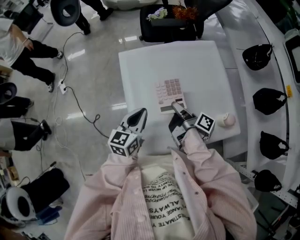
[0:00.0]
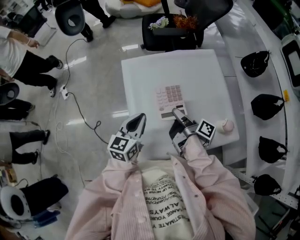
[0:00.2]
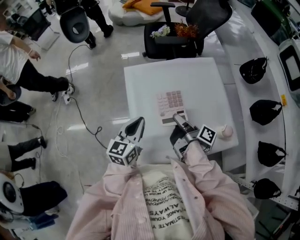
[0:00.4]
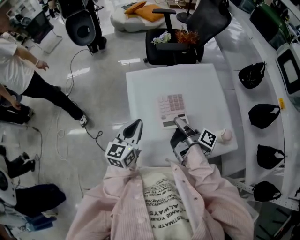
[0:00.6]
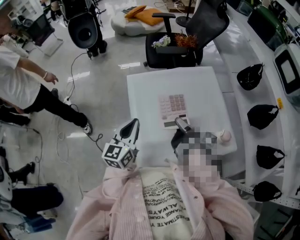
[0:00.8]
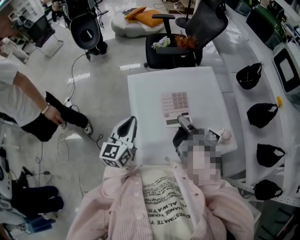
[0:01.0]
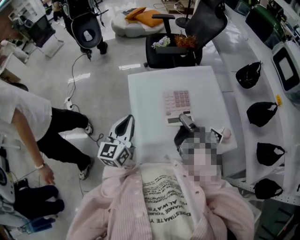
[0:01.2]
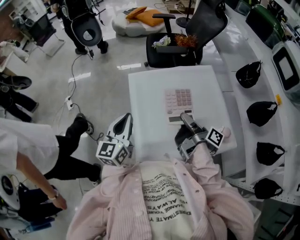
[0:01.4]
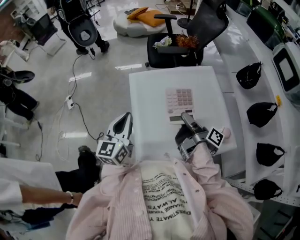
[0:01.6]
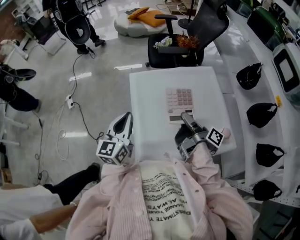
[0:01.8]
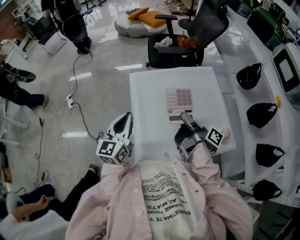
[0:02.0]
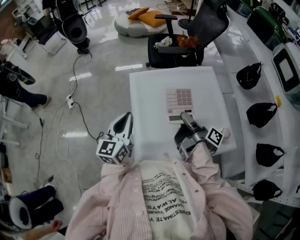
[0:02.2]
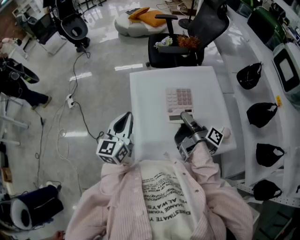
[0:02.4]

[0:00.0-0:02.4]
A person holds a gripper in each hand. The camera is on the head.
0:00.0 to 0:01.2: The right gripper goes roughly 10 cm upward, while the left gripper travels upward and to the left by roughly 15 cm.
0:01.2 to 0:02.4: Both grippers stay about where they are.

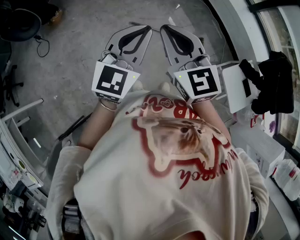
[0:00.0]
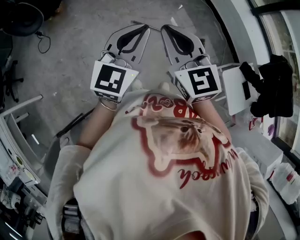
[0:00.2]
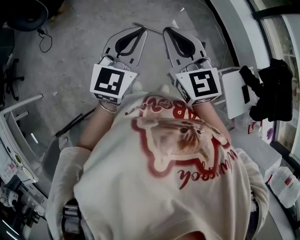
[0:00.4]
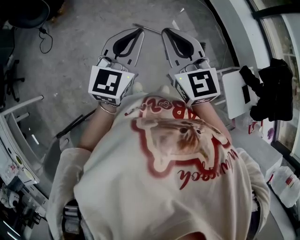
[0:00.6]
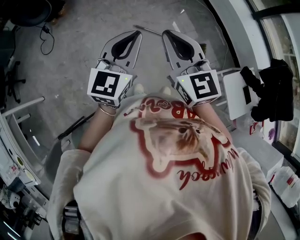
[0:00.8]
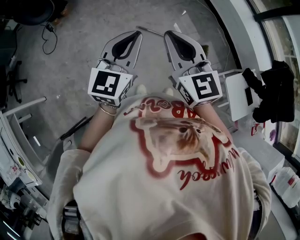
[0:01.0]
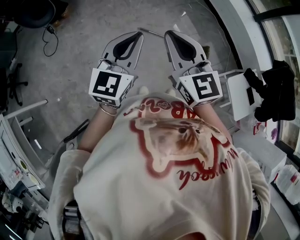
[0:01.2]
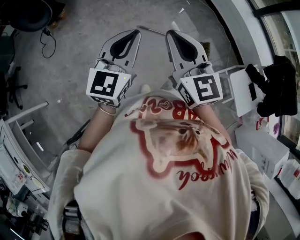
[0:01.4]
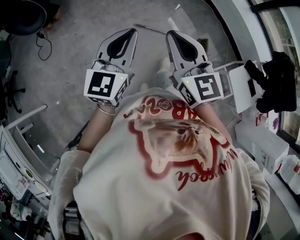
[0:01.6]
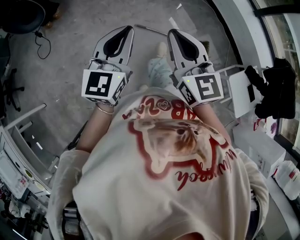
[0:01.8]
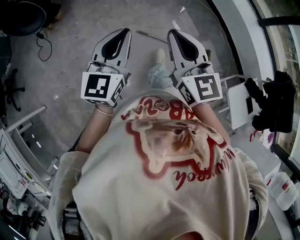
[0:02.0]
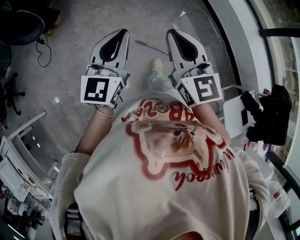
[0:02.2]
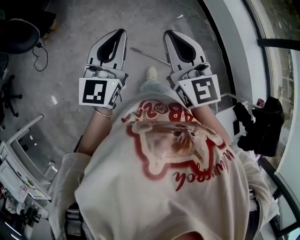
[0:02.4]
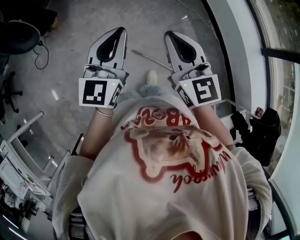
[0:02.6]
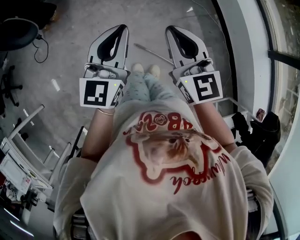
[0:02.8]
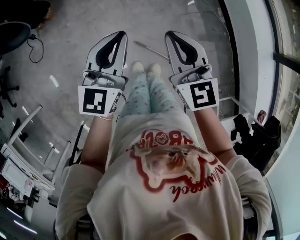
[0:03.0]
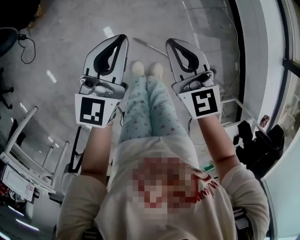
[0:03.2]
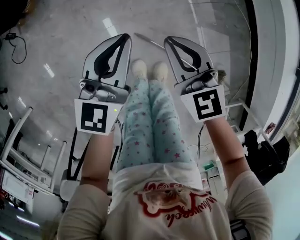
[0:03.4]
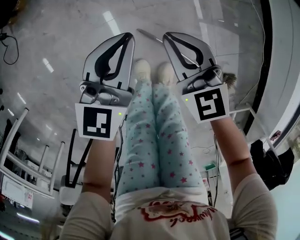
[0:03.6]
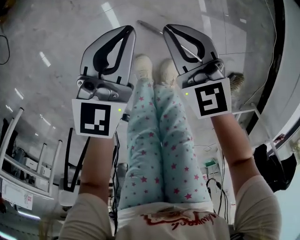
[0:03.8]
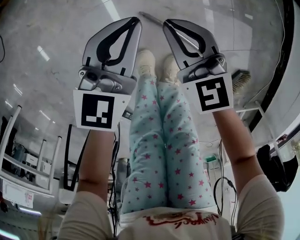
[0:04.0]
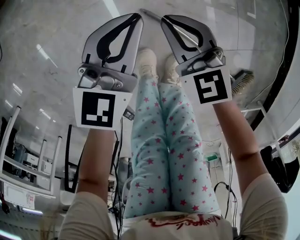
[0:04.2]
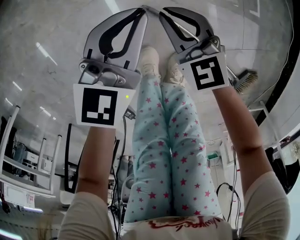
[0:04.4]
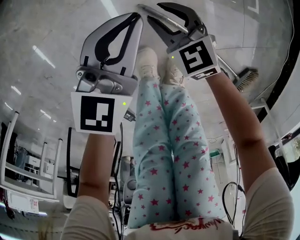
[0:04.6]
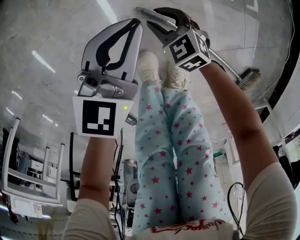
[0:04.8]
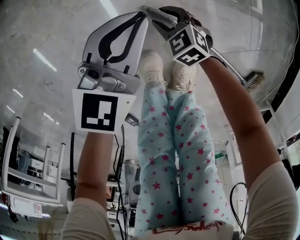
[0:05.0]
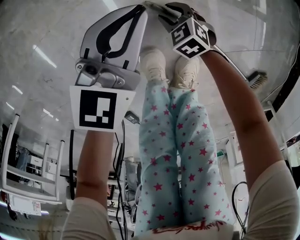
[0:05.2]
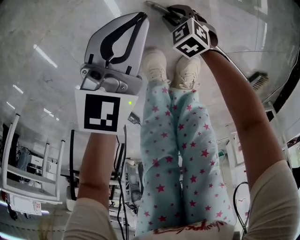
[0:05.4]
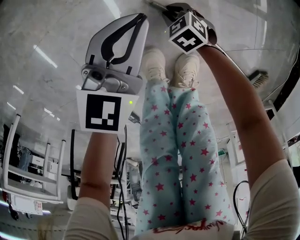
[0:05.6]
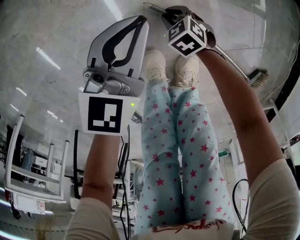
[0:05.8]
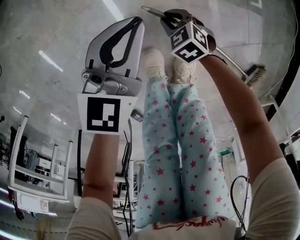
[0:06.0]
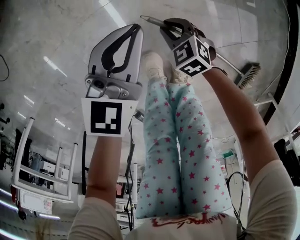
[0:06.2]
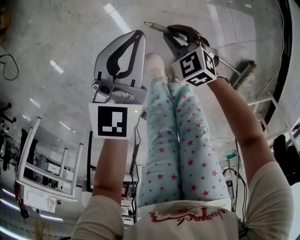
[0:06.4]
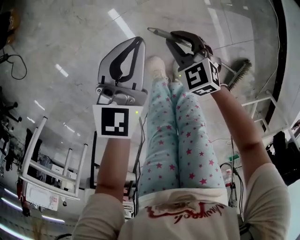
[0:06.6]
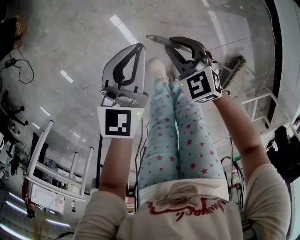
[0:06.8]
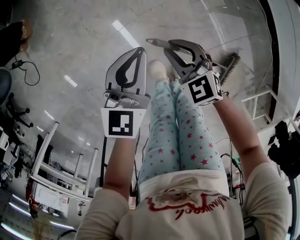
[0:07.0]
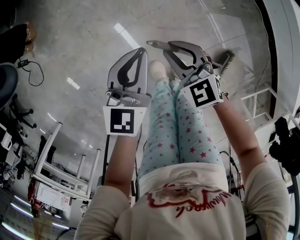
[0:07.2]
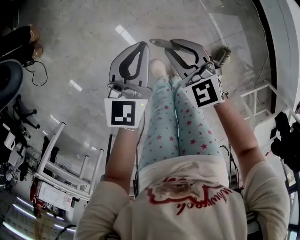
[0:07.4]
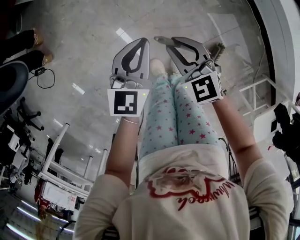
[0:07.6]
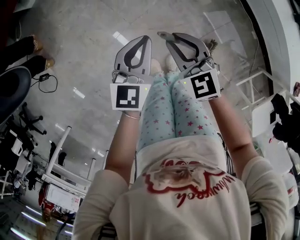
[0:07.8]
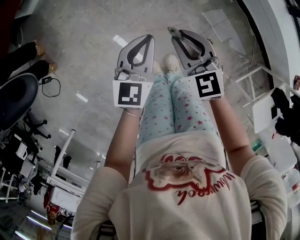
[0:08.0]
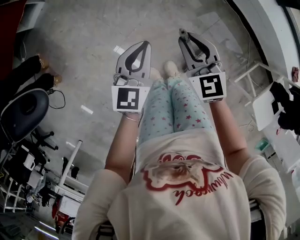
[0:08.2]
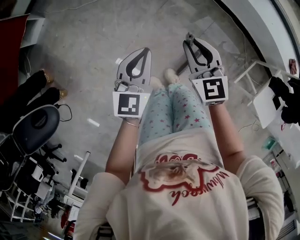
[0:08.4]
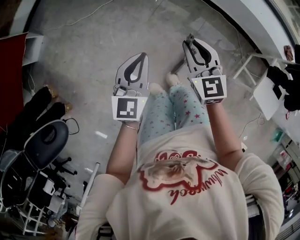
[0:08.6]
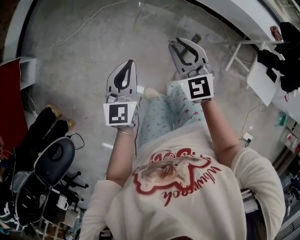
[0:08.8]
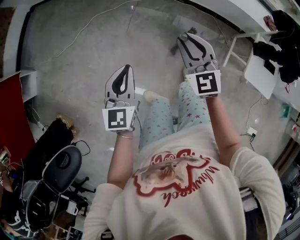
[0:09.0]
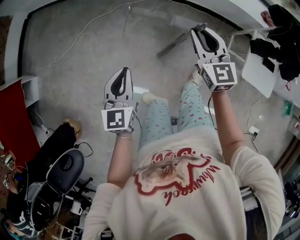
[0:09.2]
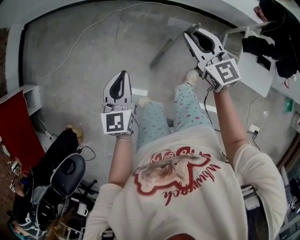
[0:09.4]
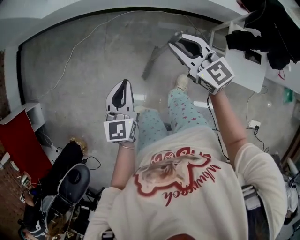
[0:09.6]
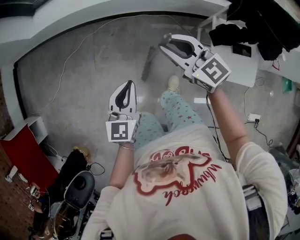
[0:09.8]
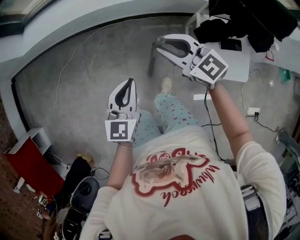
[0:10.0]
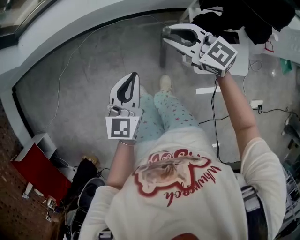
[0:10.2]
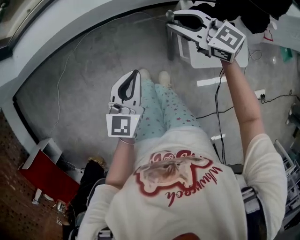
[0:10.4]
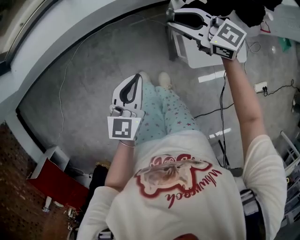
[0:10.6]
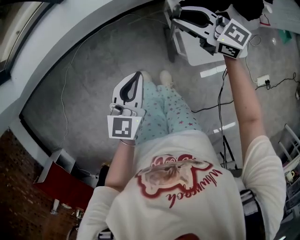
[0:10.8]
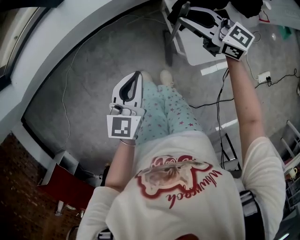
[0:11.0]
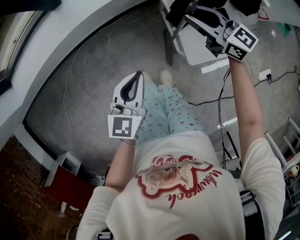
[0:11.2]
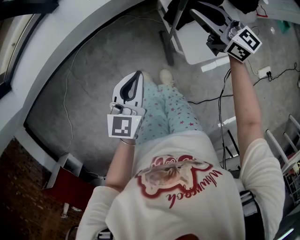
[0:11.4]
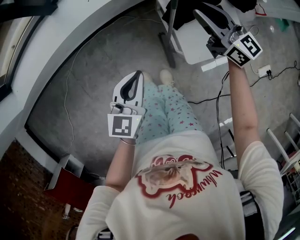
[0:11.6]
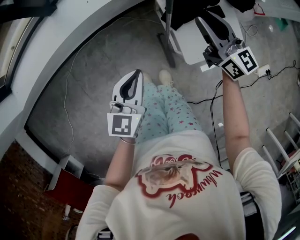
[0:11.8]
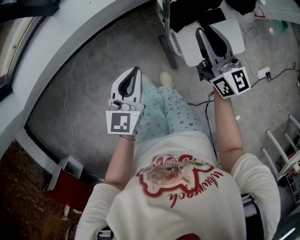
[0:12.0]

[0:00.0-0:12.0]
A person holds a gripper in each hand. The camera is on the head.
0:00.0 to 0:01.6: The right gripper heads to the left, covering some 5 cm, while the left gripper goes approximately 10 cm to the left.
0:01.6 to 0:03.0: The pair of grippers is taken forward, about 40 cm.
0:03.0 to 0:04.4: The grippers both shift downward by some 60 cm. The right gripper changes its angle by some 30 degrees.
0:04.4 to 0:06.0: The right gripper is displaced downward by some 15 cm, and swivels some 30 degrees.
0:06.0 to 0:07.6: The left gripper goes about 30 cm upward. Meanwhile the right gripper goes approximately 50 cm upward, and tips its fingers upward by about 30 degrees.
0:07.6 to 0:09.0: The right gripper ends up about 35 cm from where it was, and rotates about 50 degrees. Meanwhile the left gripper changes place by approximately 20 cm, and rotates about 30 degrees.
0:09.0 to 0:10.4: The two grippers travel together, to the right, roughly 50 cm. The left gripper changes its angle by roughly 40 degrees. Meanwhile the right gripper swivels roughly 30 degrees.
0:10.4 to 0:12.0: The right gripper shifts by approximately 15 cm, and turns by roughly 50 degrees; the left gripper moves about 10 cm.

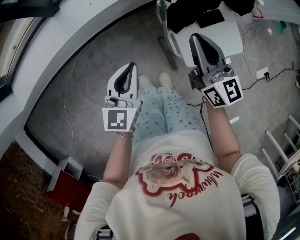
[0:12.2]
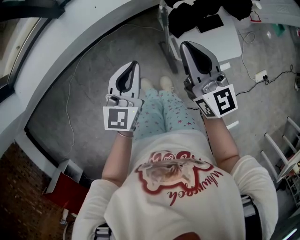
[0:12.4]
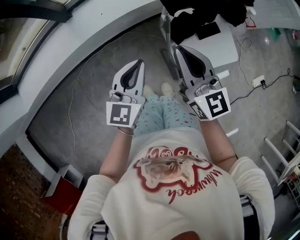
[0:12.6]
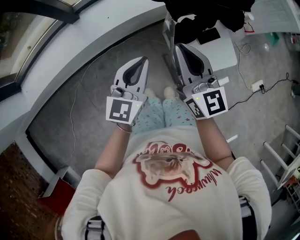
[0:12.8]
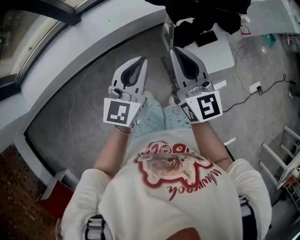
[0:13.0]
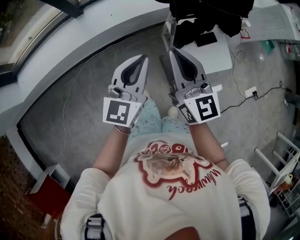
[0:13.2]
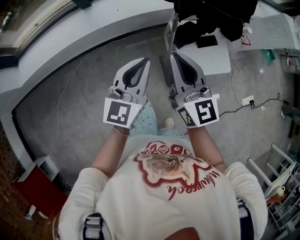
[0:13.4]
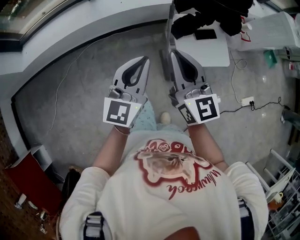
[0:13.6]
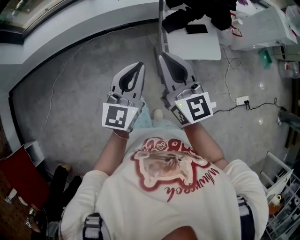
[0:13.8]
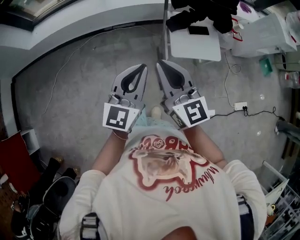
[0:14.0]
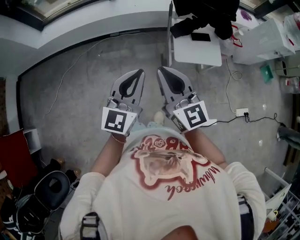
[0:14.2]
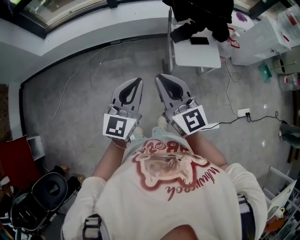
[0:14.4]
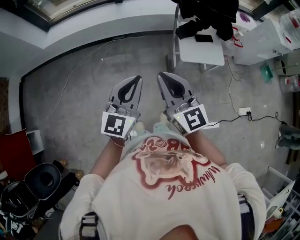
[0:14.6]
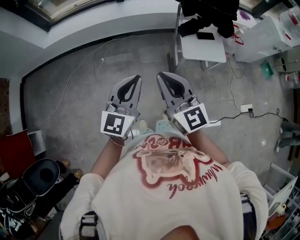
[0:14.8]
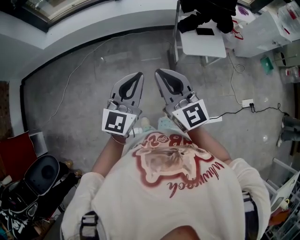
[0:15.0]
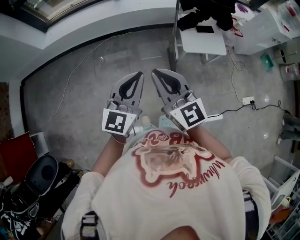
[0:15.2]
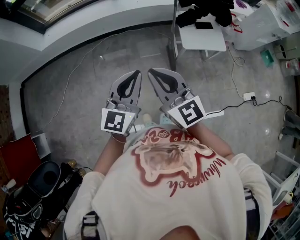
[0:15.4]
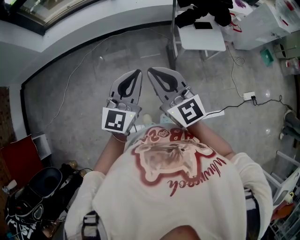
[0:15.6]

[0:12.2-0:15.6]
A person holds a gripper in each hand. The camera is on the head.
0:12.2 to 0:13.8: The grippers both shift backward and upward by some 30 cm.
0:13.8 to 0:15.6: The grippers both shift backward and to the left by some 25 cm.

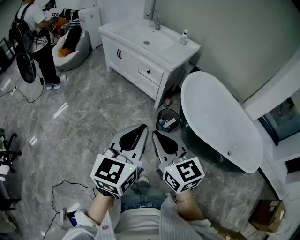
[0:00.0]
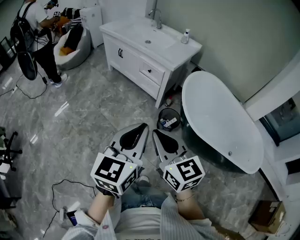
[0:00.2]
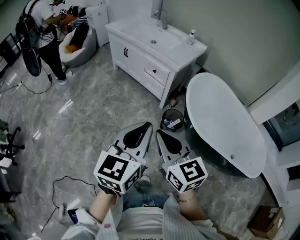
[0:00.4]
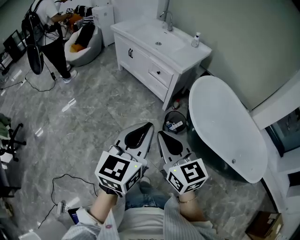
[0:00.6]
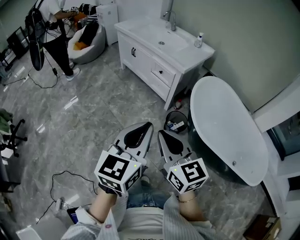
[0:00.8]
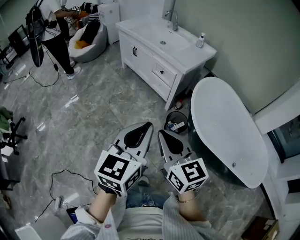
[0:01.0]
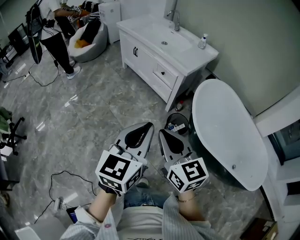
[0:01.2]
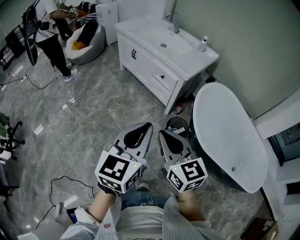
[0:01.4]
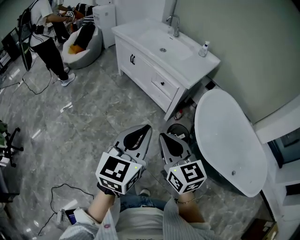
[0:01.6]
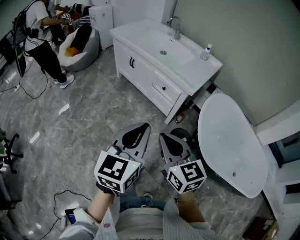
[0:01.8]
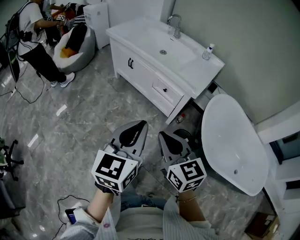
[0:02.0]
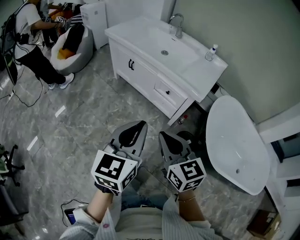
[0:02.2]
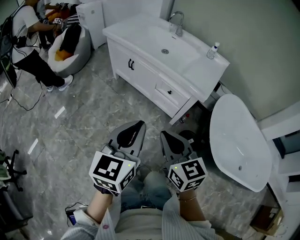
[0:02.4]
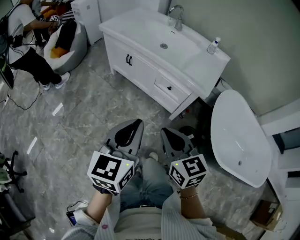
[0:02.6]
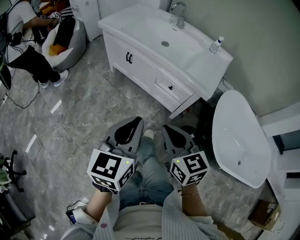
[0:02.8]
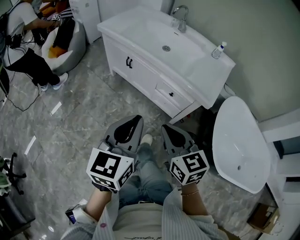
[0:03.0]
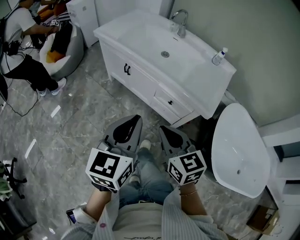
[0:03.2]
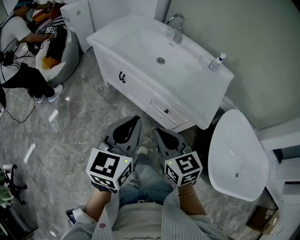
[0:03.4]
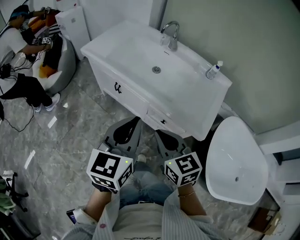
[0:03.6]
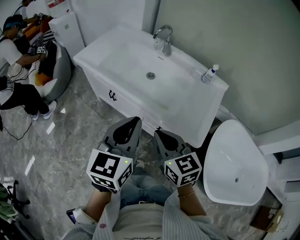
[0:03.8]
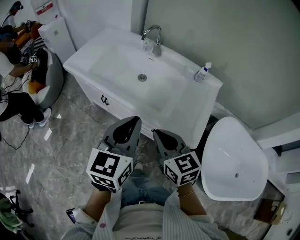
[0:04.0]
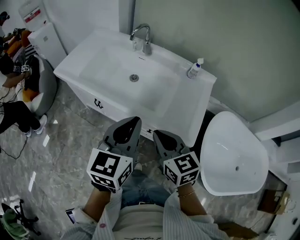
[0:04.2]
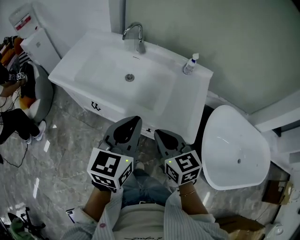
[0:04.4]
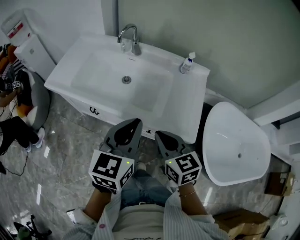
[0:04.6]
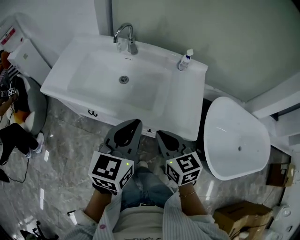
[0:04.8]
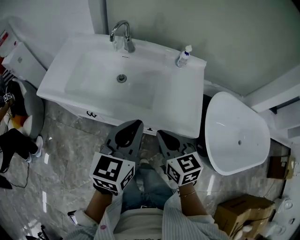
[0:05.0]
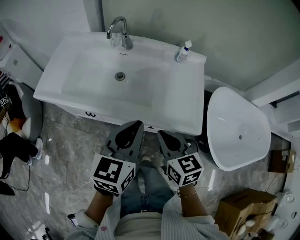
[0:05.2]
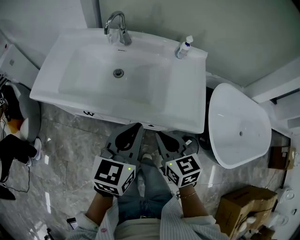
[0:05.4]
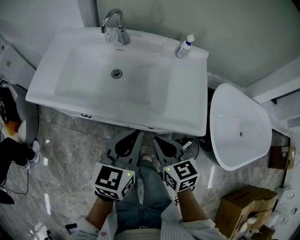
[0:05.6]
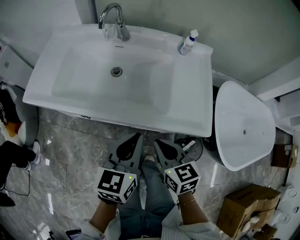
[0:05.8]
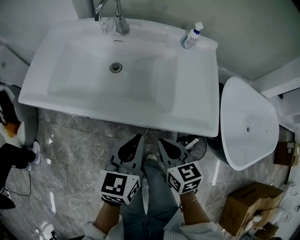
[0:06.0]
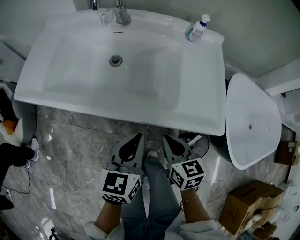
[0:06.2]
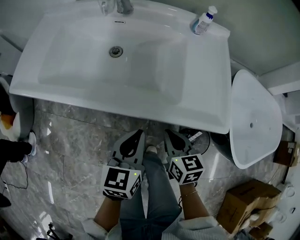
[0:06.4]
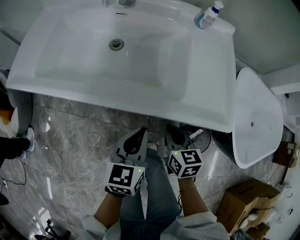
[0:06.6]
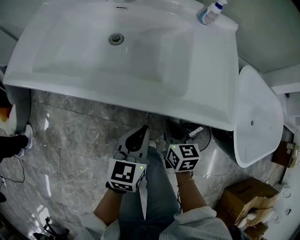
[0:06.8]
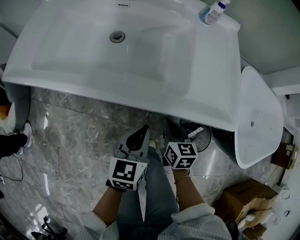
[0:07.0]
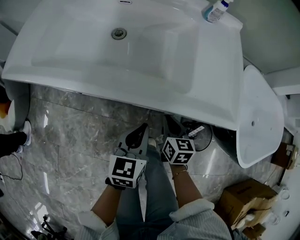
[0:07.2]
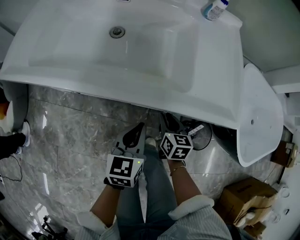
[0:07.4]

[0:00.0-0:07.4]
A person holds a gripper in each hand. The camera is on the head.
0:00.0 to 0:01.4: Both grippers move forward, some 5 cm.
0:01.4 to 0:03.0: The right gripper goes roughly 35 cm forward. Meanwhile the left gripper moves forward and to the left, about 40 cm.
0:03.0 to 0:04.4: The right gripper goes roughly 25 cm forward, while the left gripper goes some 30 cm forward and to the right.
0:04.4 to 0:06.0: Both grippers move downward, approximately 15 cm. The right gripper changes its angle by about 20 degrees.
0:06.0 to 0:07.4: The grippers both shift downward by some 20 cm.
